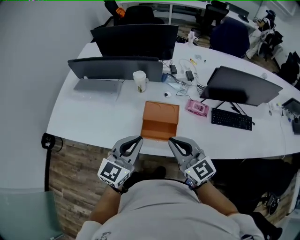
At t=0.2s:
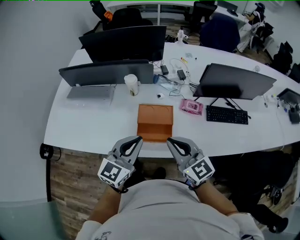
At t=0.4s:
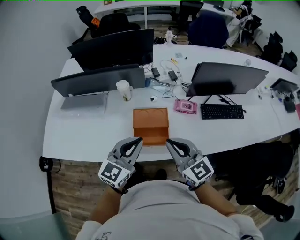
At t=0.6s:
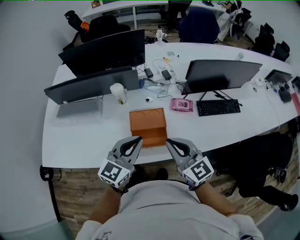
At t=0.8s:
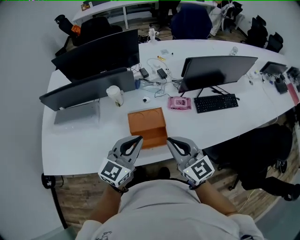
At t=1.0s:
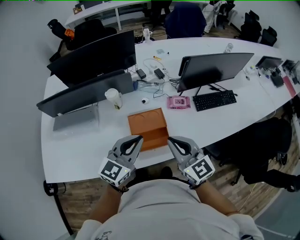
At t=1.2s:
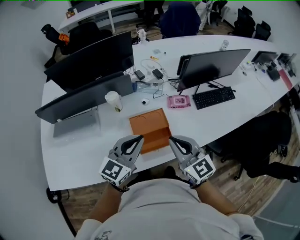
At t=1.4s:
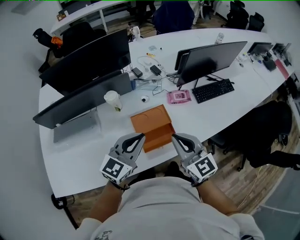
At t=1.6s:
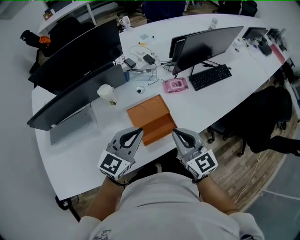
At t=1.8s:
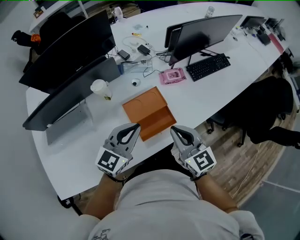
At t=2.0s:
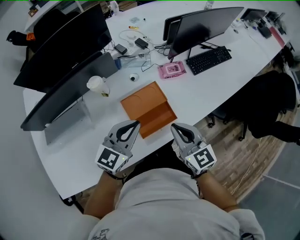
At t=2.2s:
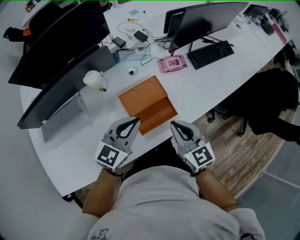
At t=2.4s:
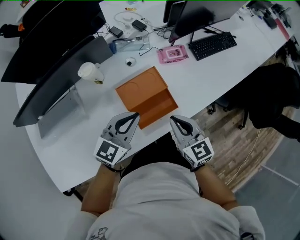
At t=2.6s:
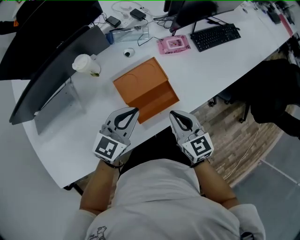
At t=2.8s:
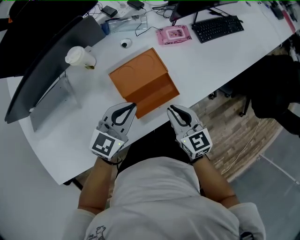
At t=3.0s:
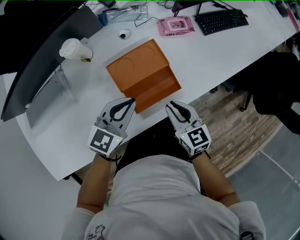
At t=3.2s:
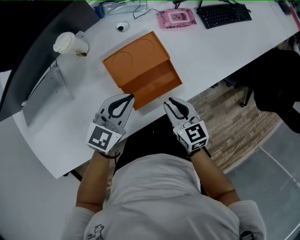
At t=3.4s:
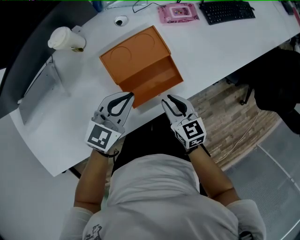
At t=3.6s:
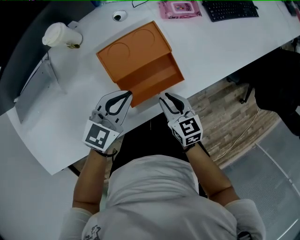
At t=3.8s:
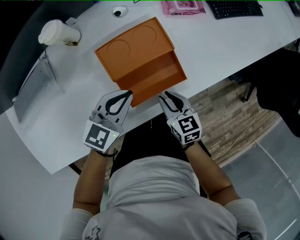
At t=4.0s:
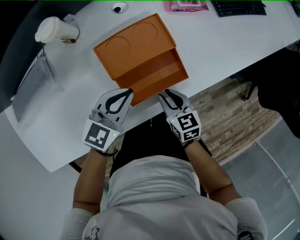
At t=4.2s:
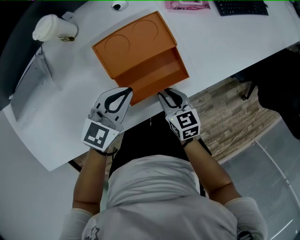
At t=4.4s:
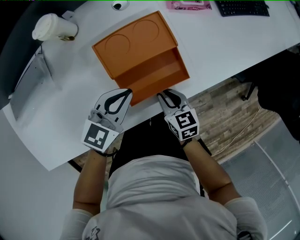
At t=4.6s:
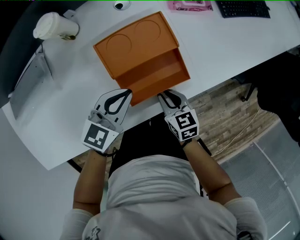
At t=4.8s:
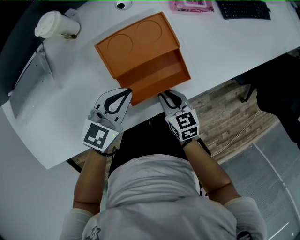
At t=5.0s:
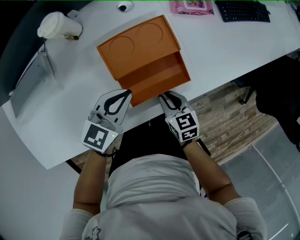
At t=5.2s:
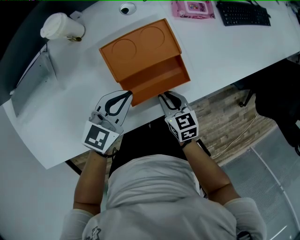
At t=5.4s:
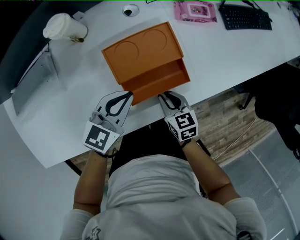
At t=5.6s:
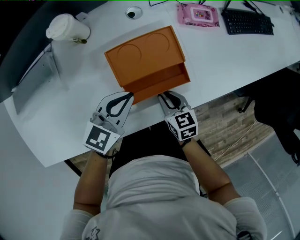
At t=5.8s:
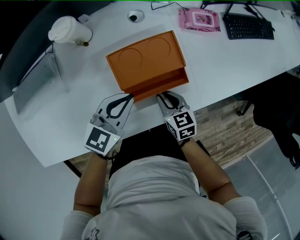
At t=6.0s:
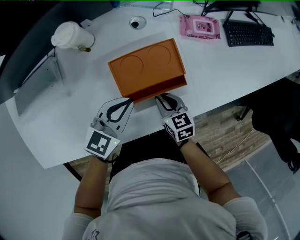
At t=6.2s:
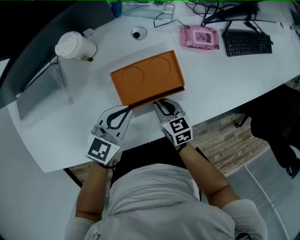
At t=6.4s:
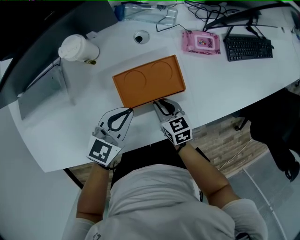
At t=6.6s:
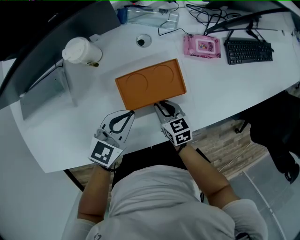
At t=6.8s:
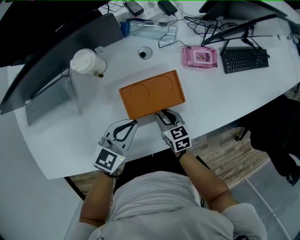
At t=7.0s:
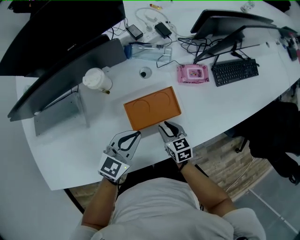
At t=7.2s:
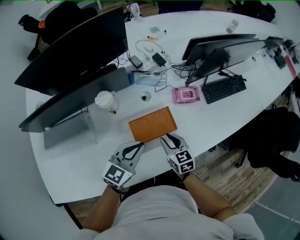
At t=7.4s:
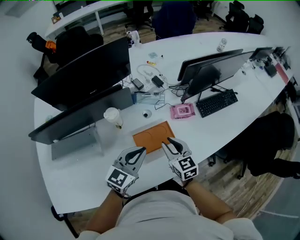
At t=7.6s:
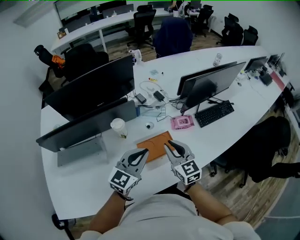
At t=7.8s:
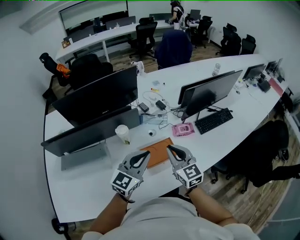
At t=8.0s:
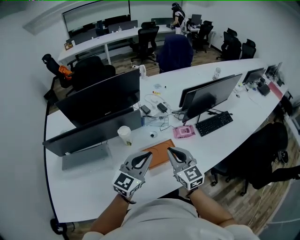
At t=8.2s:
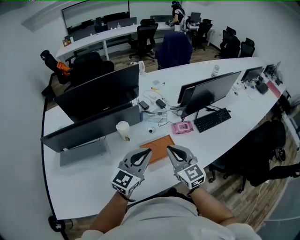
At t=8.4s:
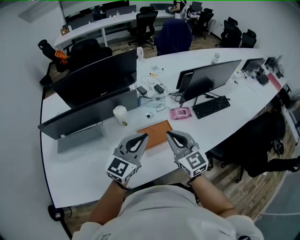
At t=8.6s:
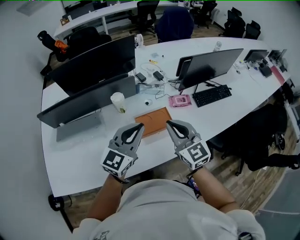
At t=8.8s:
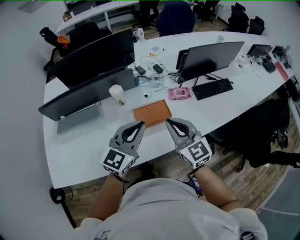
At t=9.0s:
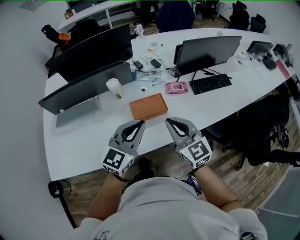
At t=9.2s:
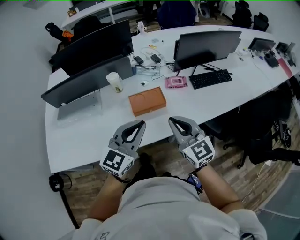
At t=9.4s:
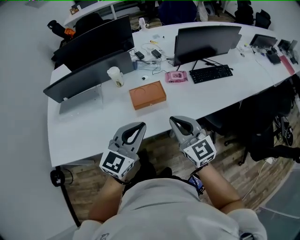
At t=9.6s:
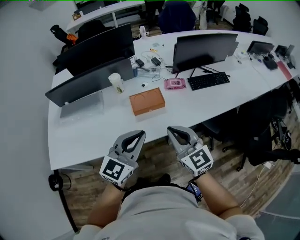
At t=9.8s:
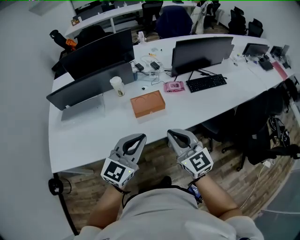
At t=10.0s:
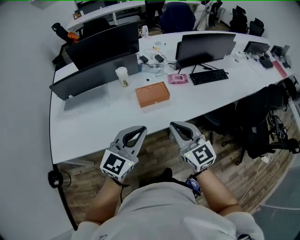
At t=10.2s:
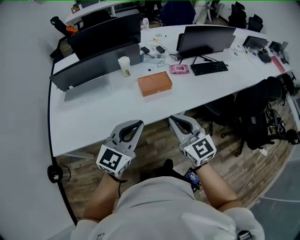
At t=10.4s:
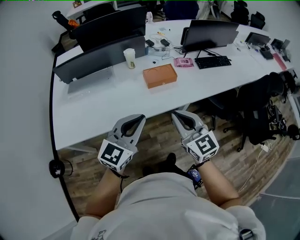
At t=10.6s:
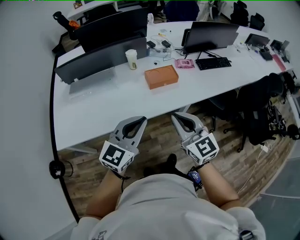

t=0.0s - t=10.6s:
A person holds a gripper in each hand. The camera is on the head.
t=0.0s - t=1.6s: The left gripper shifts by about 15 cm, and swivels some 40 degrees. The right gripper shifts by about 10 cm, and changes its angle by some 40 degrees.
t=1.6s - t=3.0s: Both grippers move downward, about 25 cm. The right gripper swivels roughly 20 degrees.
t=3.0s - t=4.6s: The two grippers go about 15 cm downward.
t=4.6s - t=6.0s: The right gripper is displaced forward by approximately 5 cm; the left gripper shifts by some 5 cm.
t=6.0s - t=7.6s: Both grippers move upward, about 35 cm. The left gripper changes its angle by roughly 20 degrees. The right gripper swivels some 40 degrees.
t=7.6s - t=9.0s: The two grippers go some 20 cm backward and to the right.
t=9.0s - t=10.6s: The right gripper moves backward, approximately 30 cm; the left gripper goes about 30 cm backward and to the left.

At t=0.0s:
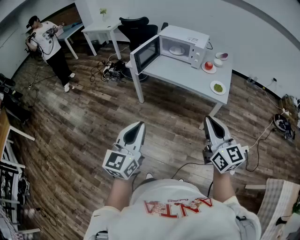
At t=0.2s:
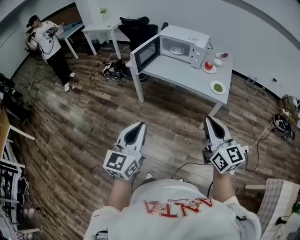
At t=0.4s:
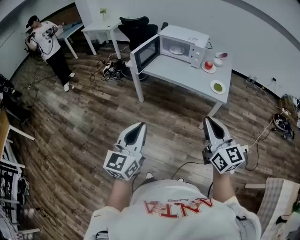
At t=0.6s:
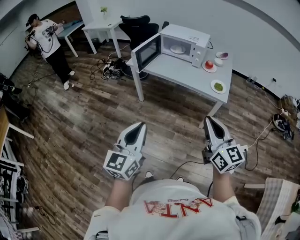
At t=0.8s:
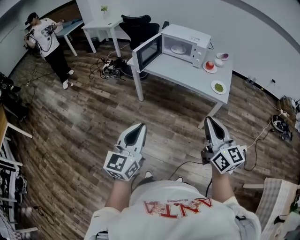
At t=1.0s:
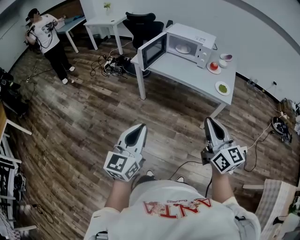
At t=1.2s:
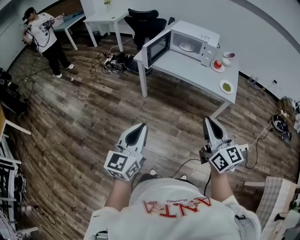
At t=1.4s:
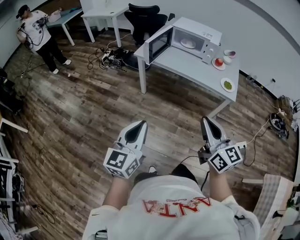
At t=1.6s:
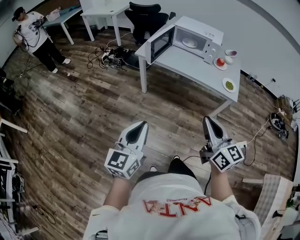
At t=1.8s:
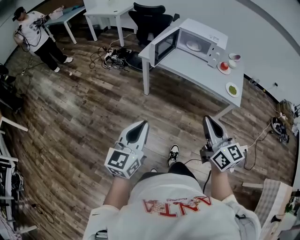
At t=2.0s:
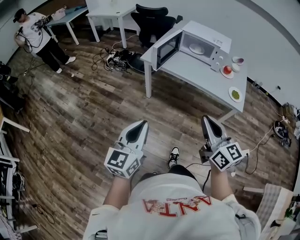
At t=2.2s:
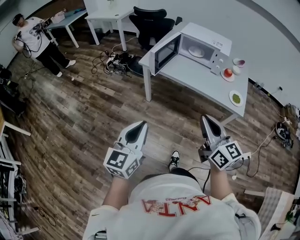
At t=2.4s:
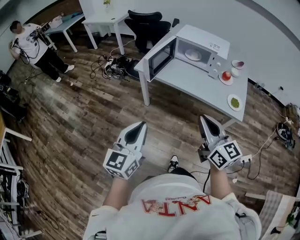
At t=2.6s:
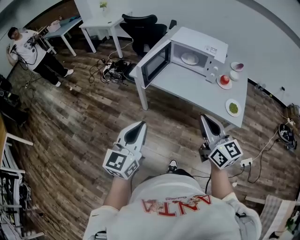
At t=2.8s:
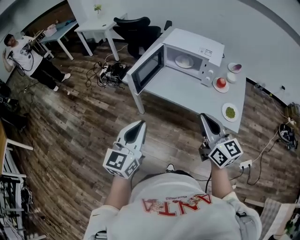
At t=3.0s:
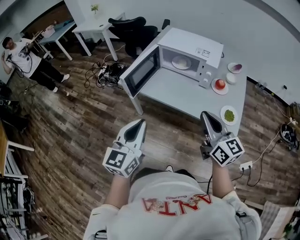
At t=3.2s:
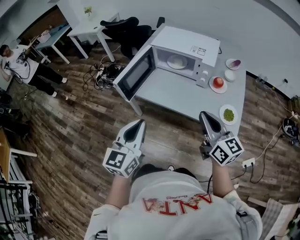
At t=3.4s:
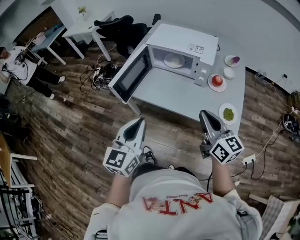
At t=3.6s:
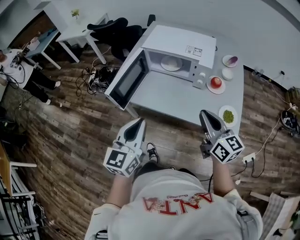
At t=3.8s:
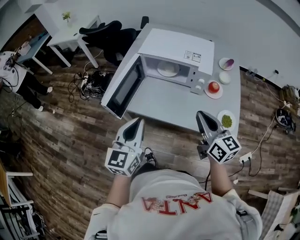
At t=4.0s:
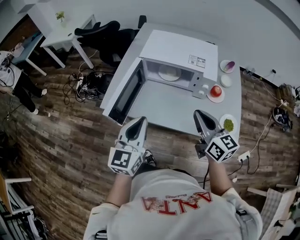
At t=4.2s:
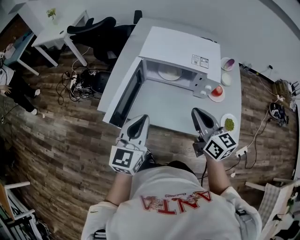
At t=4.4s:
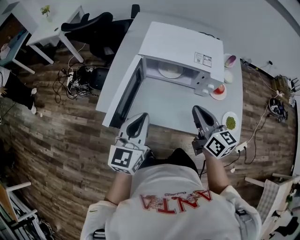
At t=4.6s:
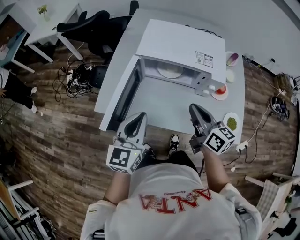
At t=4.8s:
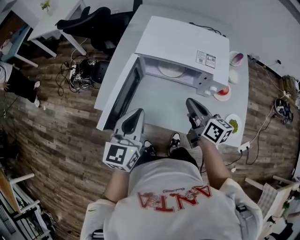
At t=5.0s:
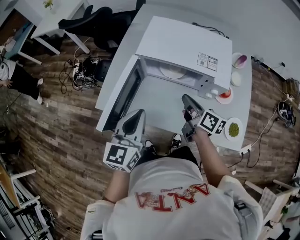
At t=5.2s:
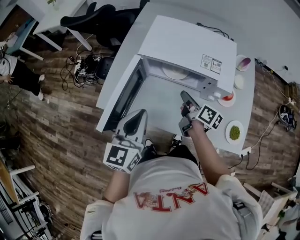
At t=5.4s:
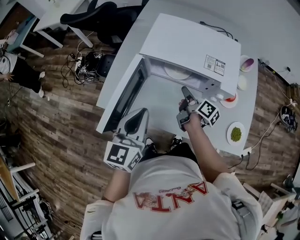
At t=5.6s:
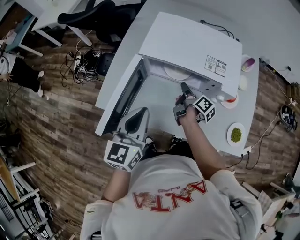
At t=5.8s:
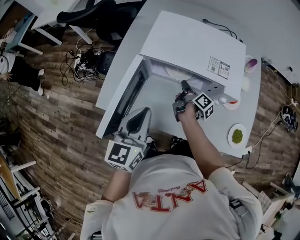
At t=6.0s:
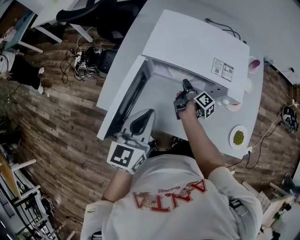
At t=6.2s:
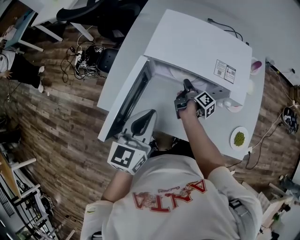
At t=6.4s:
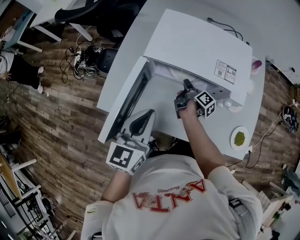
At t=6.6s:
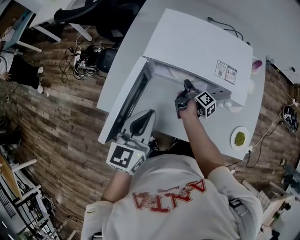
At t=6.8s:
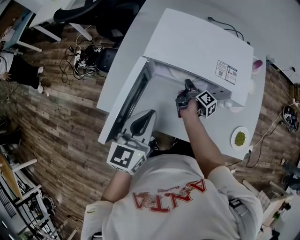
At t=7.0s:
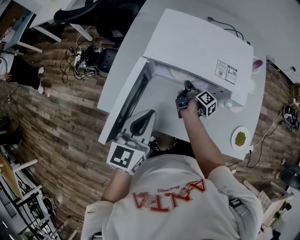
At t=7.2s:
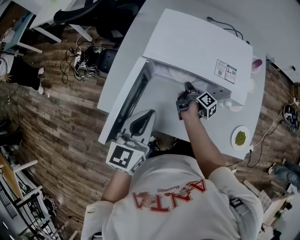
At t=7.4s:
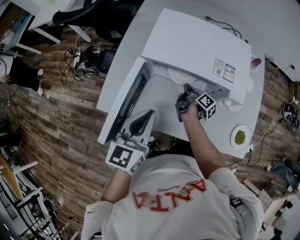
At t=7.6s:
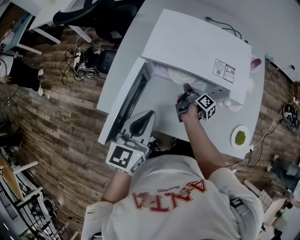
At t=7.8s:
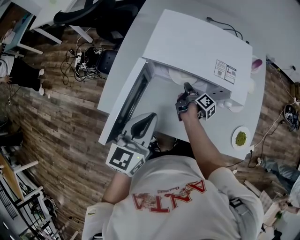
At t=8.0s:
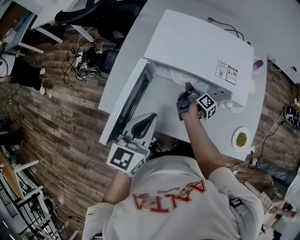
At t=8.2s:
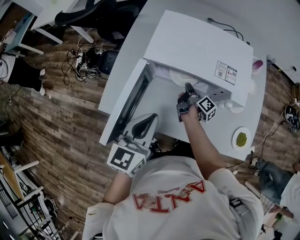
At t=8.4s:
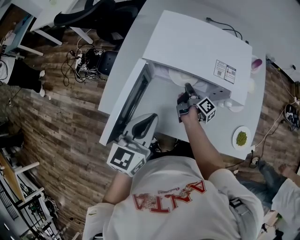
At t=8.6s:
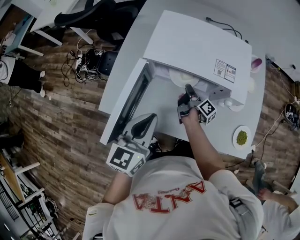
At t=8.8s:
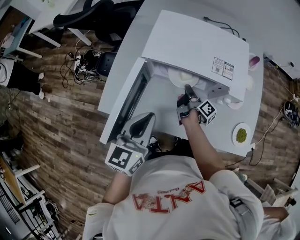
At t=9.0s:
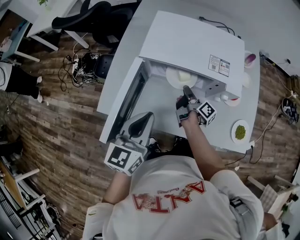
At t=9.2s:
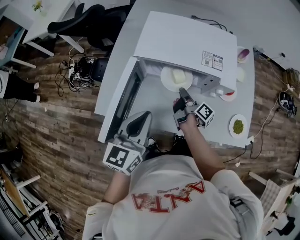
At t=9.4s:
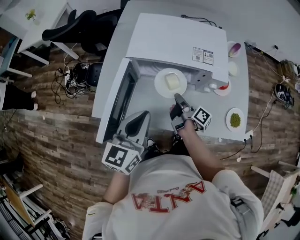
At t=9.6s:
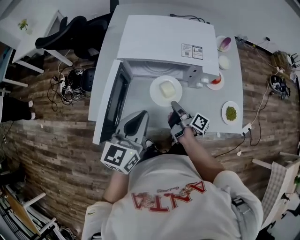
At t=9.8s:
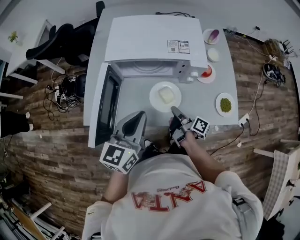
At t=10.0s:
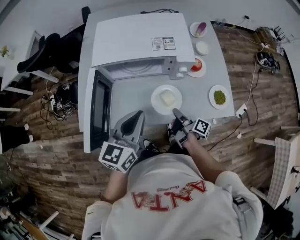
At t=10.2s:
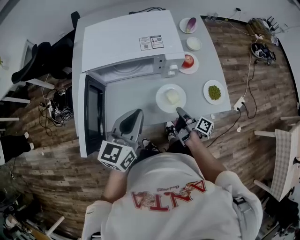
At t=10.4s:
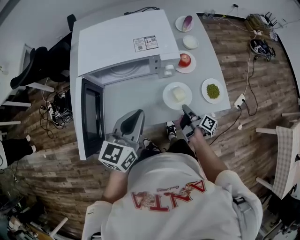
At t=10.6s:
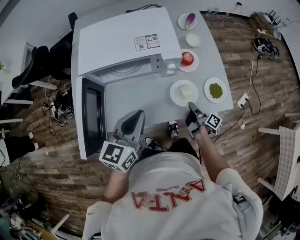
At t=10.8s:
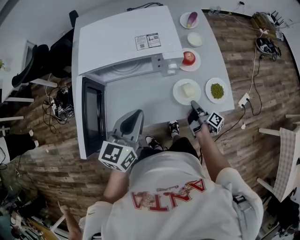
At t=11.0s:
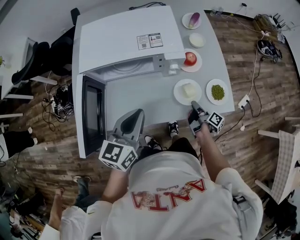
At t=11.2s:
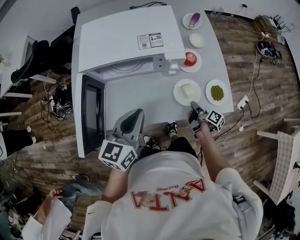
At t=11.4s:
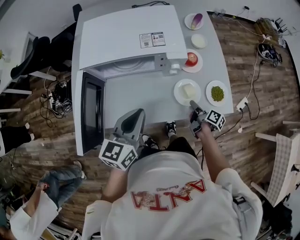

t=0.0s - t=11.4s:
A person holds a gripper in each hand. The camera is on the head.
t=0.0s - t=1.4s: Both grippers travel together to the left, about 15 cm.
t=1.4s - t=2.8s: The left gripper goes approximately 30 cm forward and to the right. The right gripper shifts some 30 cm forward.
t=2.8s - t=4.2s: Both grippers move forward, approximately 30 cm.
t=4.2s - t=5.6s: The right gripper moves downward and forward, roughly 30 cm, rotates around the line of its fingers by approximately 60 degrees, clockwise from behind, and opens. The left gripper heads forward, covering approximately 10 cm.
t=5.6s - t=7.2s: The right gripper ends up approximately 5 cm from where it was, and closes its fingers.
t=7.2s - t=8.6s: The grippers make only small movements.
t=8.6s - t=10.0s: The left gripper shifts approximately 10 cm to the right, while the right gripper is displaced backward and to the right by some 25 cm.
t=10.0s - t=11.4s: The right gripper is displaced to the right and downward by about 15 cm, and opens. Meanwhile the left gripper changes place by about 5 cm.

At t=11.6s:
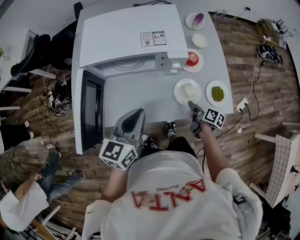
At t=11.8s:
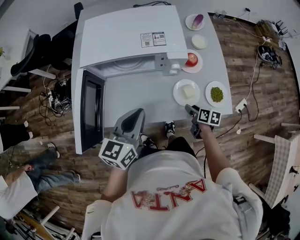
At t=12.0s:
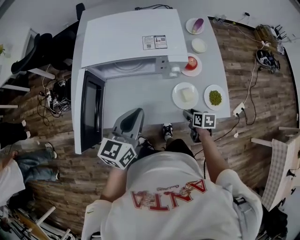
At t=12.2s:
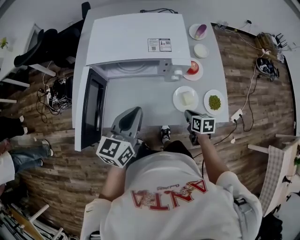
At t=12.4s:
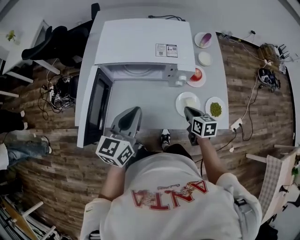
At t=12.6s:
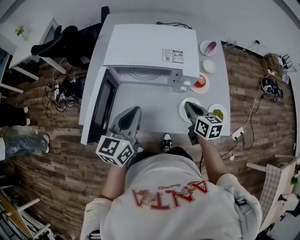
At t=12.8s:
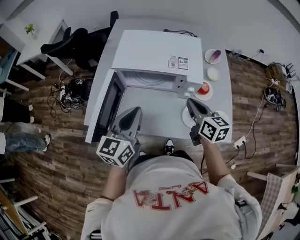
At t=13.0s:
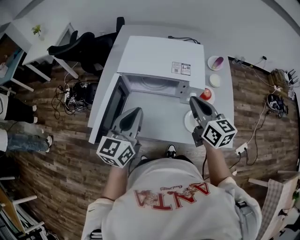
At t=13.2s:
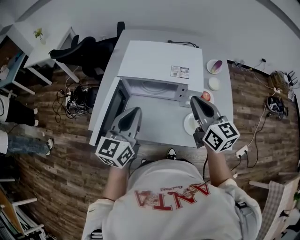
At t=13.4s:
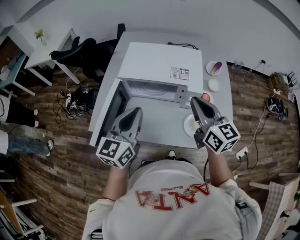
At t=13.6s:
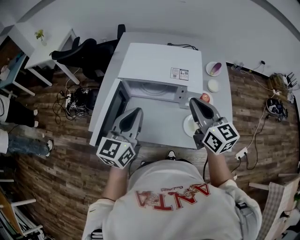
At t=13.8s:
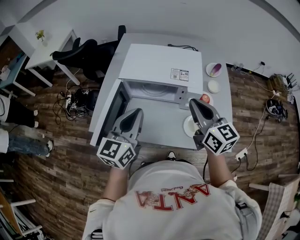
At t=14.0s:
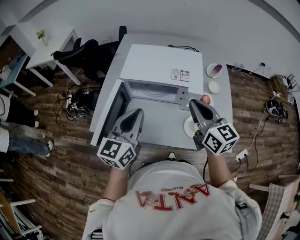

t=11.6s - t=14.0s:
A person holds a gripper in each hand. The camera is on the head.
t=11.6s - t=12.8s: The right gripper travels upward and to the left by roughly 30 cm, twists roughly 50 degrees counterclockwise, seen from behind, and closes its fingers. The left gripper travels to the left and upward by approximately 10 cm.
t=12.8s - t=14.0s: The left gripper travels upward by approximately 5 cm, while the right gripper goes about 10 cm upward.
